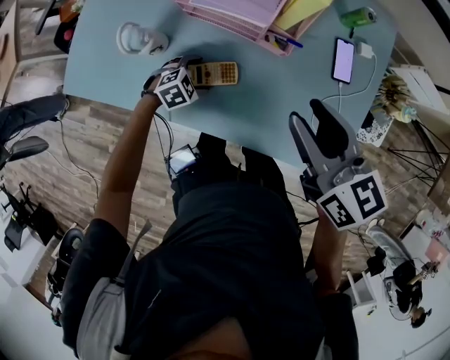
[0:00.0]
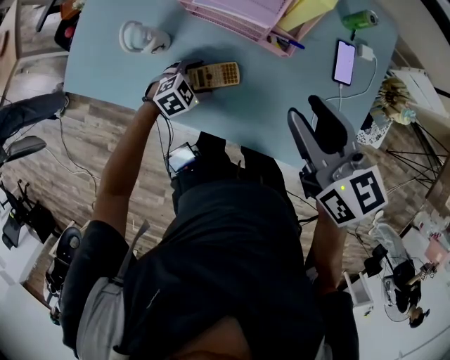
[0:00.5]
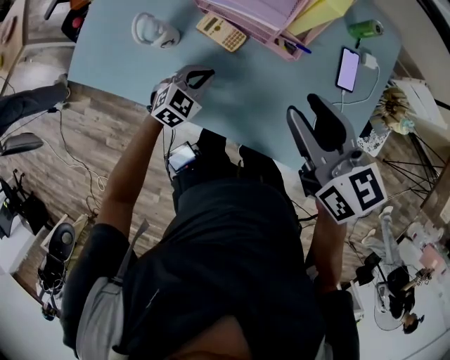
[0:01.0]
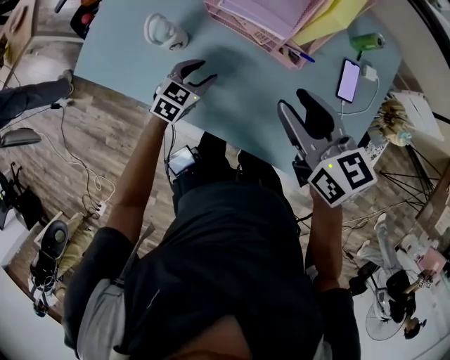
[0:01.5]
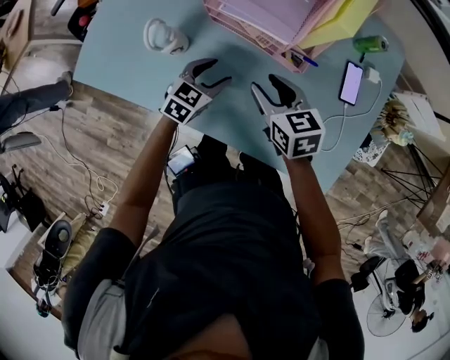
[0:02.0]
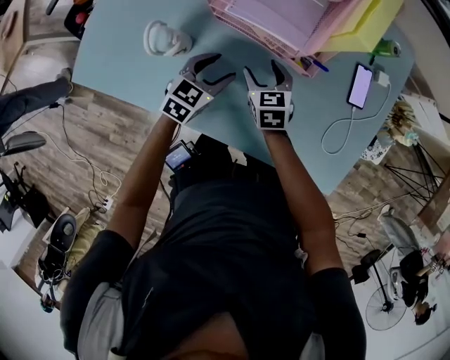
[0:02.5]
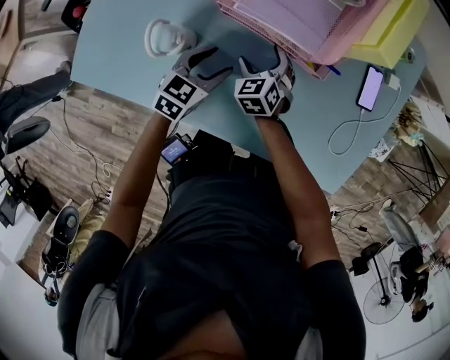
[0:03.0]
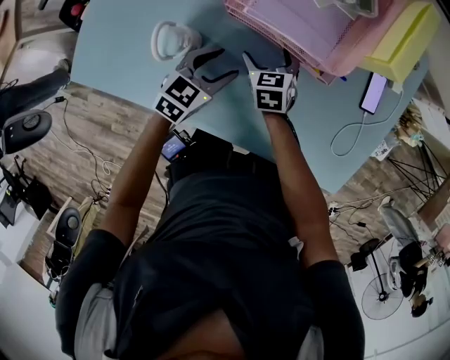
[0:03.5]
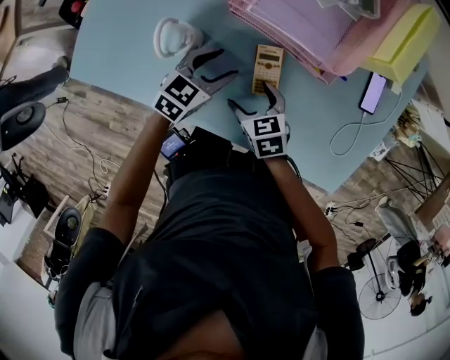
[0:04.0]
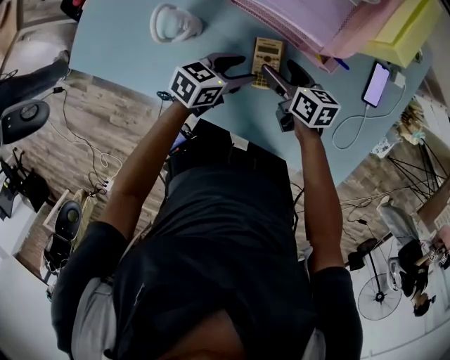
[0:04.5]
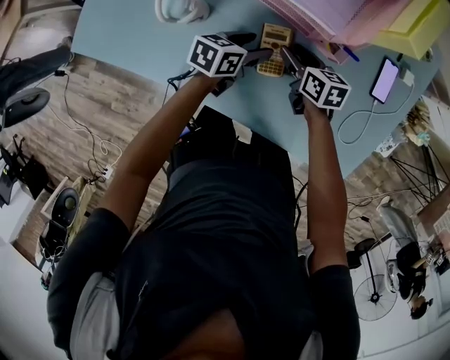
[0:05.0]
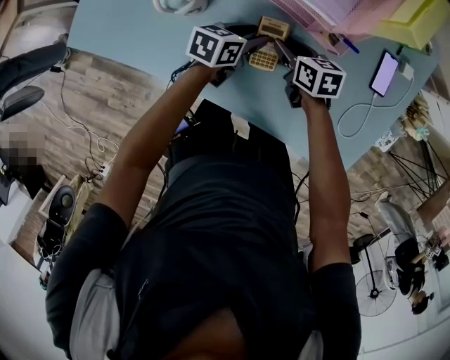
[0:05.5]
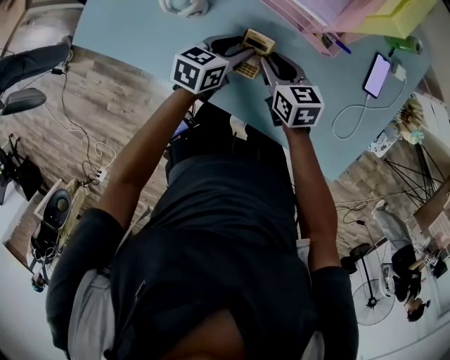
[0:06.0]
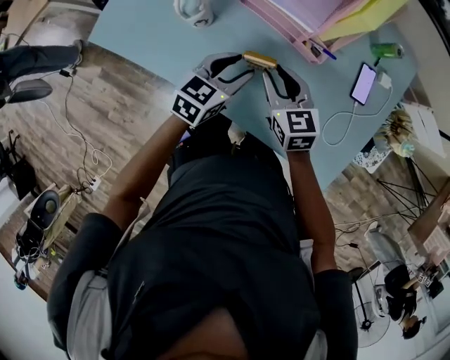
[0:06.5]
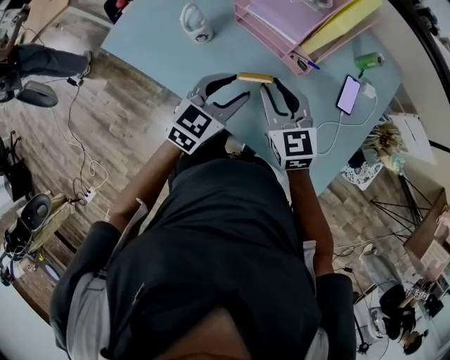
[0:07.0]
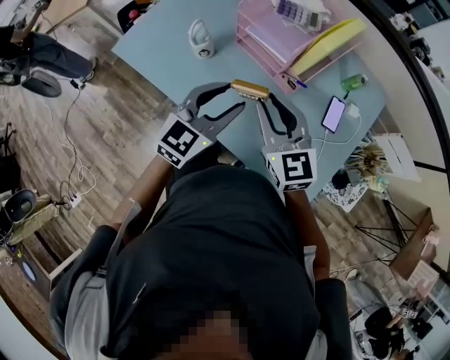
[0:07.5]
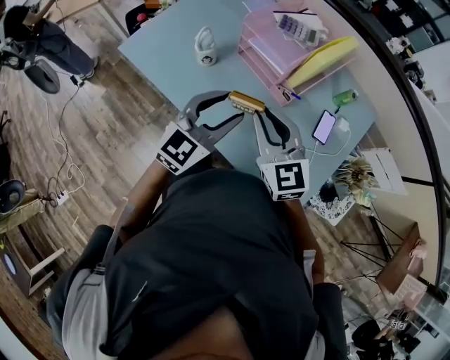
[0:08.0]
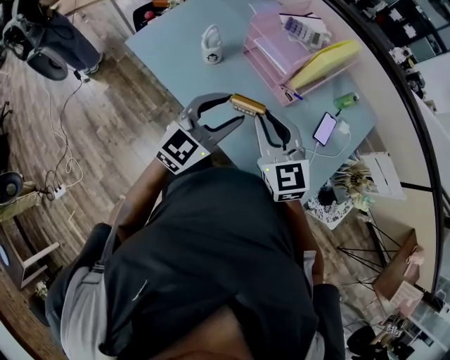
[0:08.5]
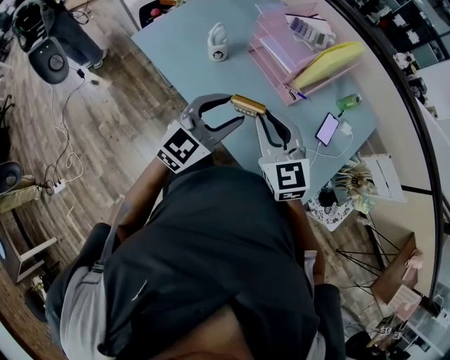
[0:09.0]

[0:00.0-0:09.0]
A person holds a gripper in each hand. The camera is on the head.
0:00.0 to 0:02.0: The left gripper goes approximately 10 cm upward, changes its angle by about 40 degrees, and closes, then reopens, while the right gripper is displaced downward and to the left by some 20 cm.
0:02.0 to 0:04.5: The left gripper rotates some 30 degrees. The right gripper moves downward, approximately 10 cm, swivels some 20 degrees, and opens its fingers.
0:04.5 to 0:07.0: The right gripper heads upward and backward, covering some 25 cm, rotates around the line of its fingers by approximately 50 degrees, counterclockwise from behind, and closes. Meanwhile the left gripper goes roughly 20 cm upward, and rotates roughly 40 degrees.
0:07.0 to 0:09.0: The right gripper goes roughly 15 cm backward and upward. Meanwhile the left gripper is displaced upward and backward by about 15 cm, and changes its angle by approximately 20 degrees.

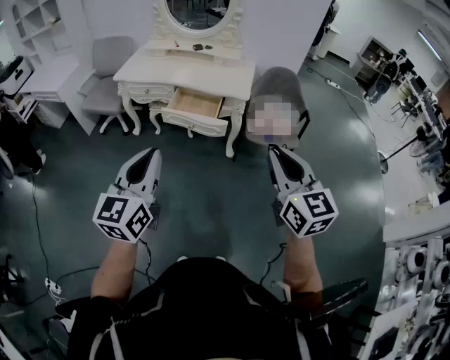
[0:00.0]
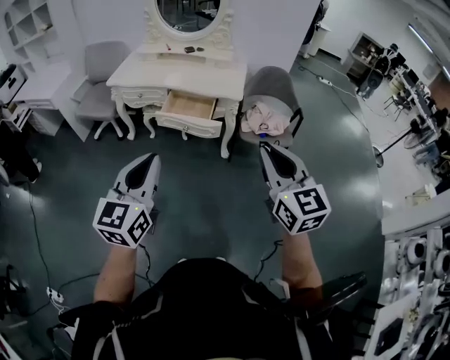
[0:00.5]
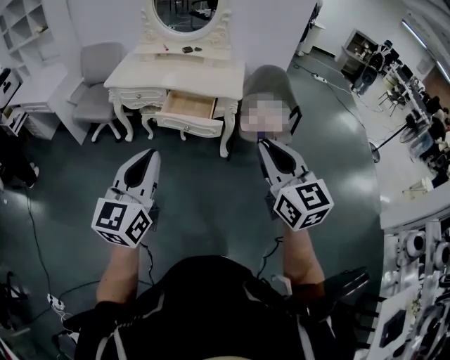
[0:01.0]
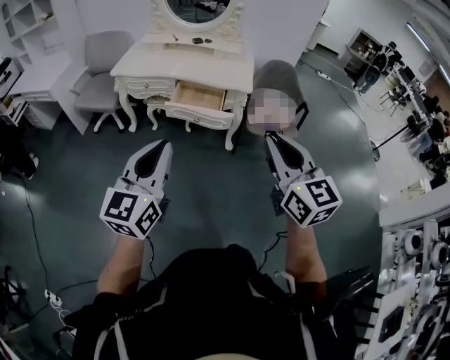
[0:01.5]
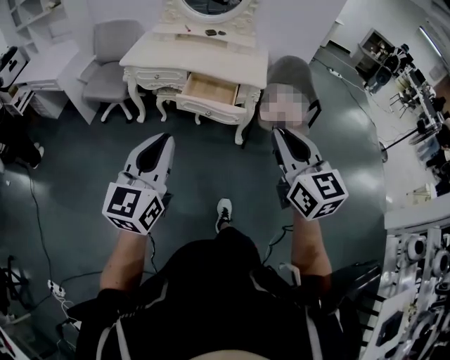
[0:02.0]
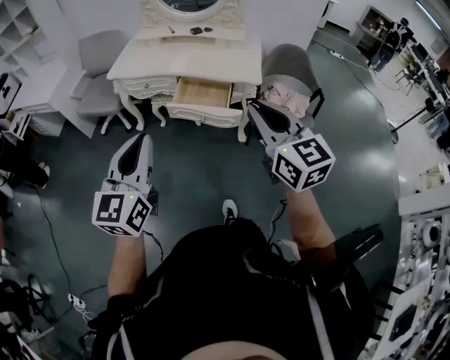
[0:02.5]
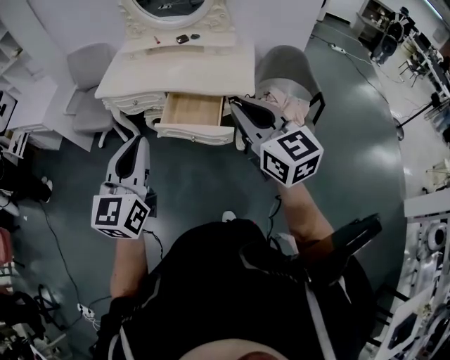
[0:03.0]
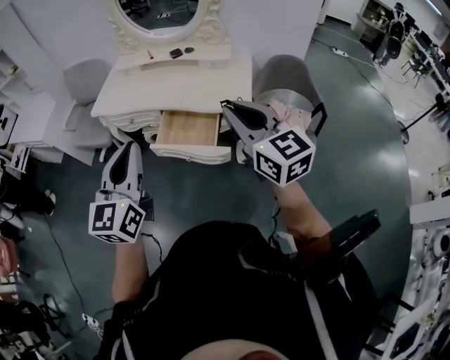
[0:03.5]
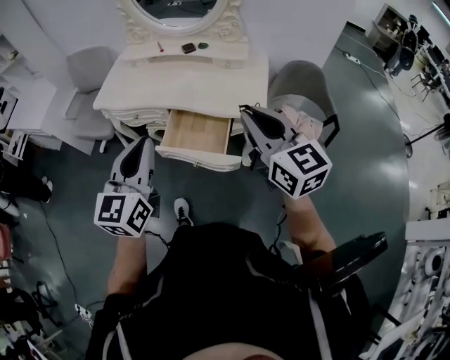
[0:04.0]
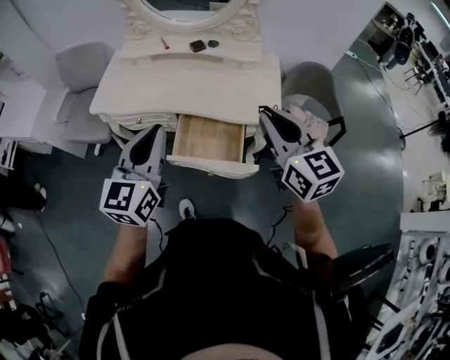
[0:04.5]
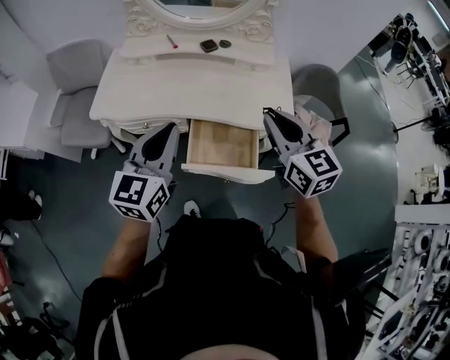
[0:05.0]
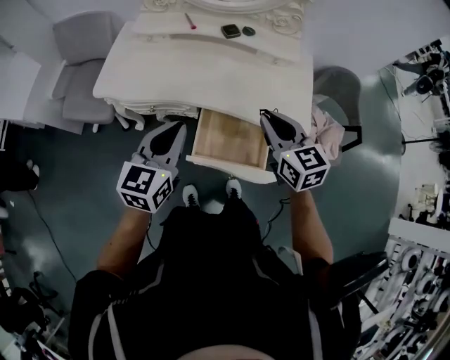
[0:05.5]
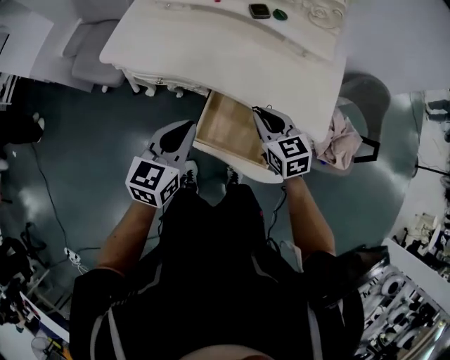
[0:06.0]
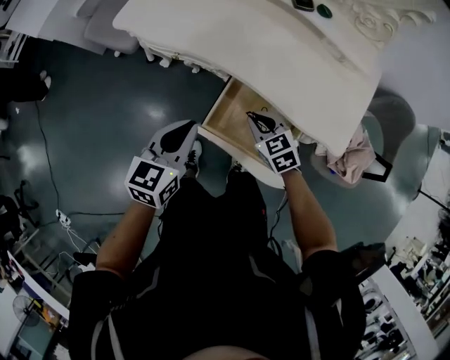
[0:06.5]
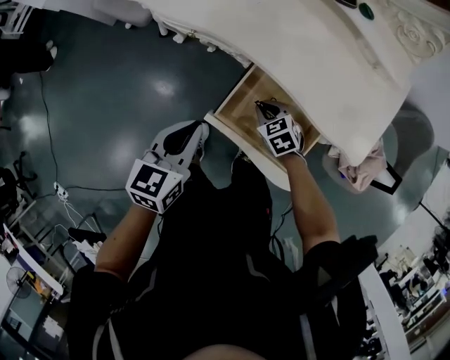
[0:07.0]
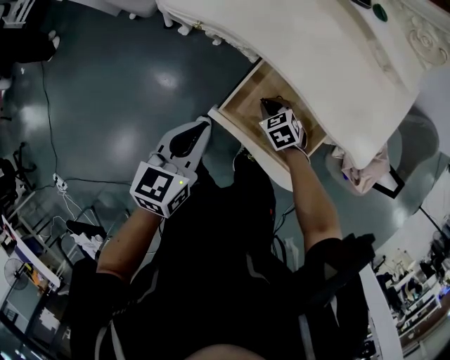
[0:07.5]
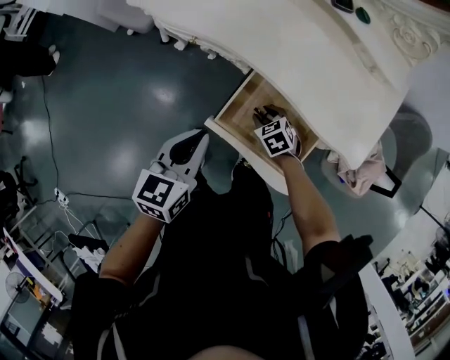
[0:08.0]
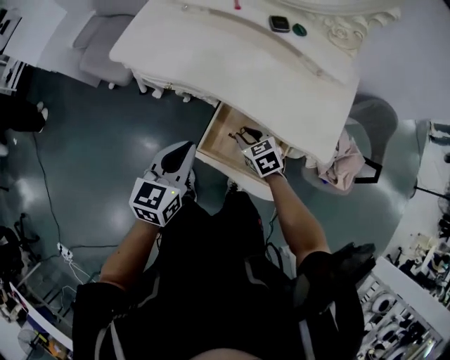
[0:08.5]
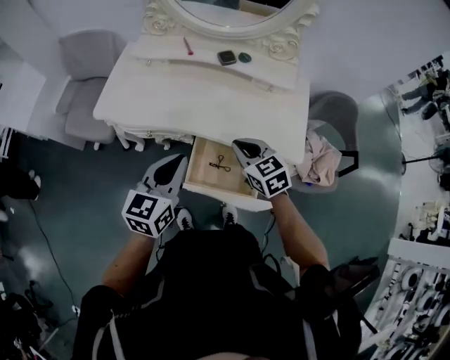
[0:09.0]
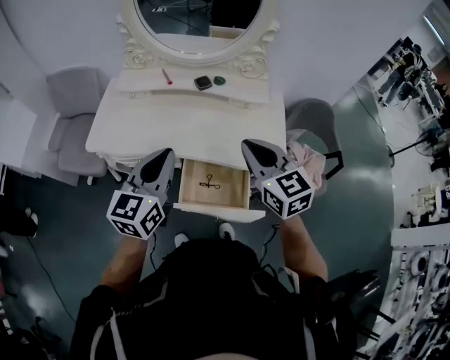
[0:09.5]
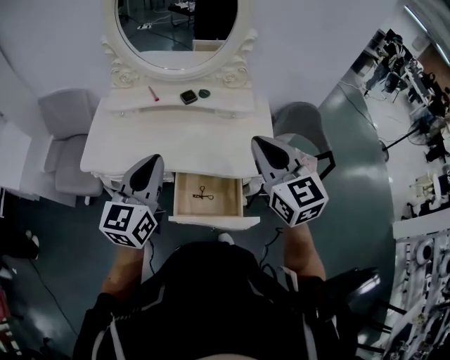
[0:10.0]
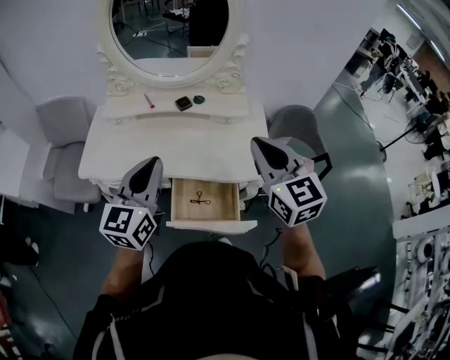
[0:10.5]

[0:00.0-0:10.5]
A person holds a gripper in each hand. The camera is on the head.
0:00.0 to 0:02.0: Both grippers travel together to the left, roughly 10 cm.
0:02.0 to 0:04.0: Both grippers move forward, roughly 35 cm.
0:04.0 to 0:06.5: The left gripper goes approximately 25 cm downward, and swivels approximately 30 degrees, while the right gripper moves downward, roughly 40 cm, and points its fingers roughly 40 degrees further downward.
0:06.5 to 0:08.5: The right gripper reaches roughly 15 cm downward, then returns. Meanwhile the left gripper reaches approximately 5 cm downward, then returns.
0:08.5 to 0:10.5: The right gripper moves upward, about 40 cm, angles its fingers upward, by roughly 40 degrees, and closes its fingers. The left gripper shifts some 25 cm upward, and changes its angle by roughly 30 degrees.

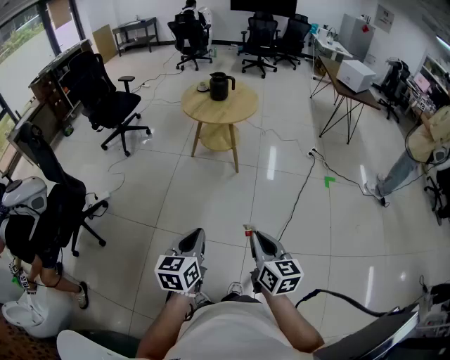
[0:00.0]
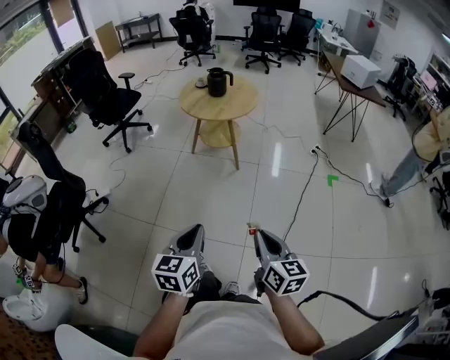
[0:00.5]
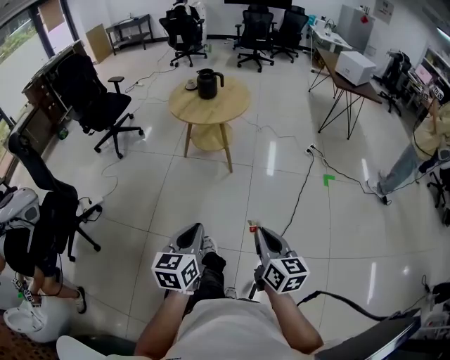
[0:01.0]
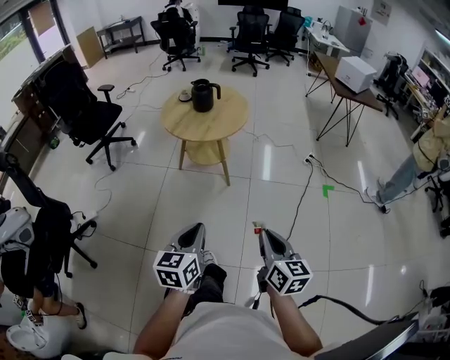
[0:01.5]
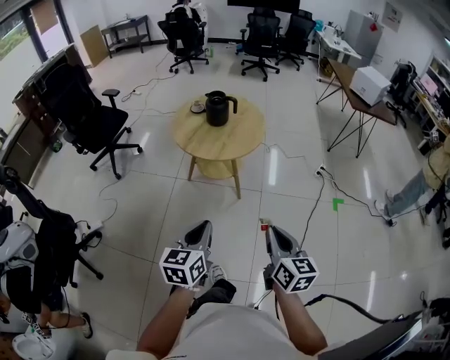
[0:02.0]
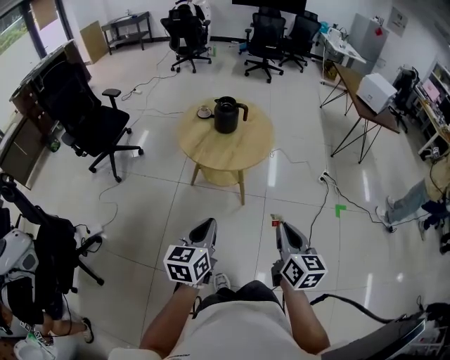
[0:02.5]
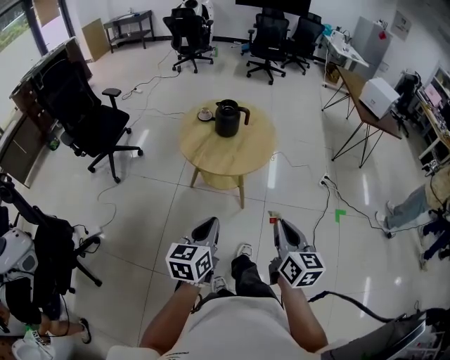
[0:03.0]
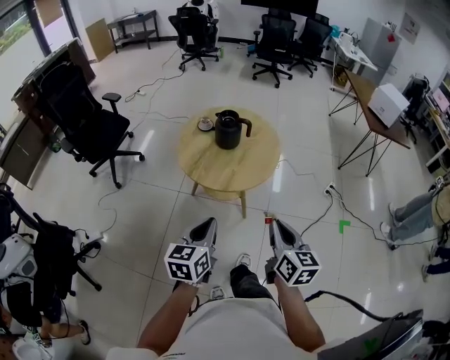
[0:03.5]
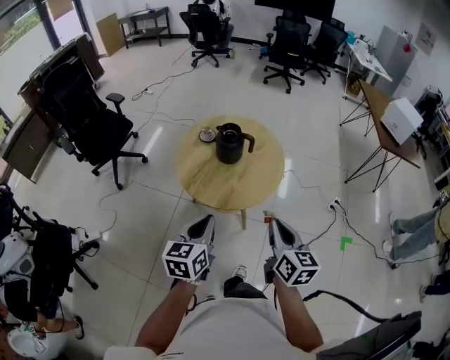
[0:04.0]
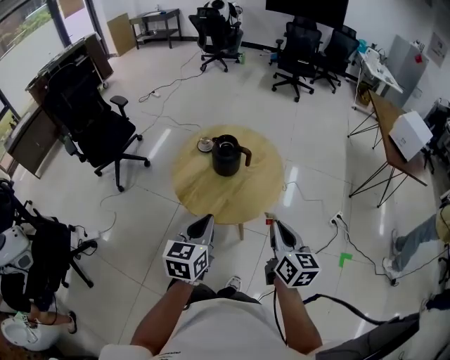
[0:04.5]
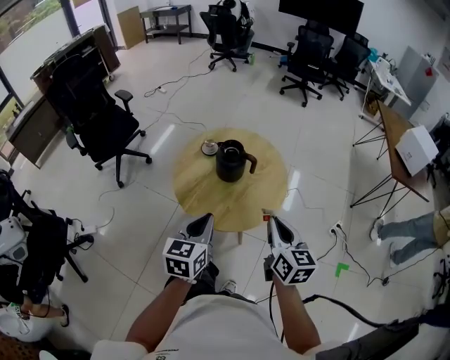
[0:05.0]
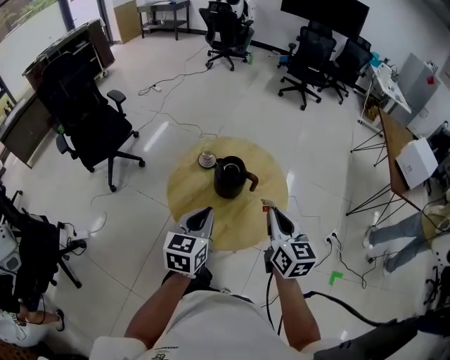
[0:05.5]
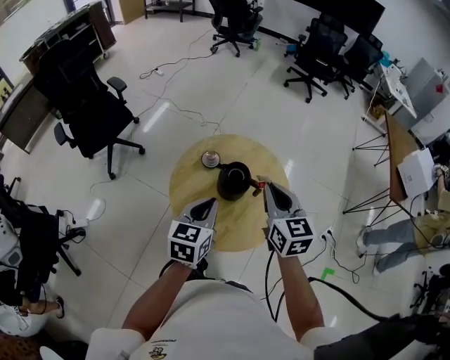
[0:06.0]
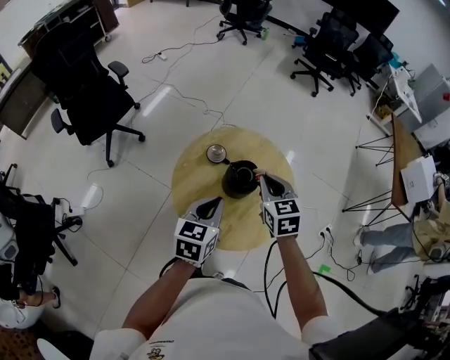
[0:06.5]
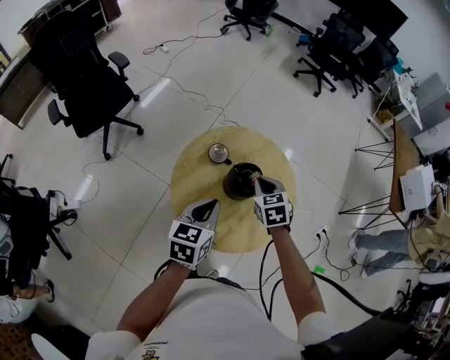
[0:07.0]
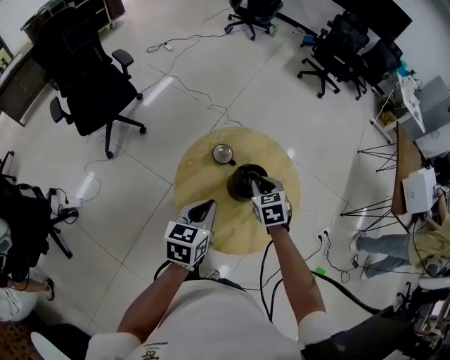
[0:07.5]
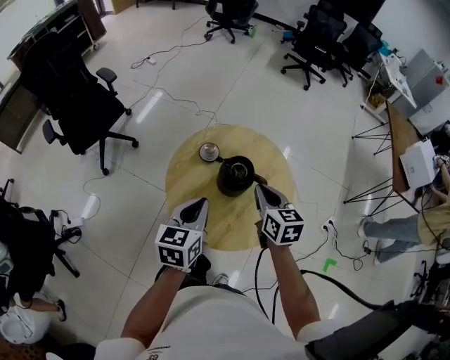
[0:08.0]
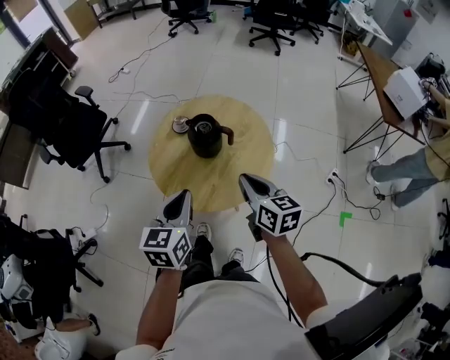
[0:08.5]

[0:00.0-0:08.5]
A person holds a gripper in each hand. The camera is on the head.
0:00.0 to 0:02.0: The grippers both shift forward by roughly 30 cm.
0:02.0 to 0:04.0: The grippers both shift forward by about 30 cm.
0:04.0 to 0:06.5: The grippers both shift forward by about 30 cm. The right gripper rotates about 40 degrees.
0:06.5 to 0:08.5: The two grippers go approximately 15 cm backward. The right gripper swivels about 30 degrees.
